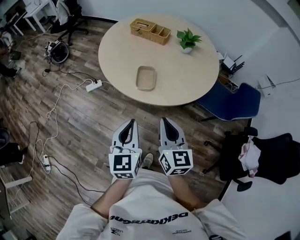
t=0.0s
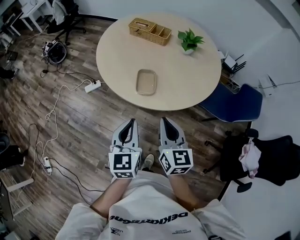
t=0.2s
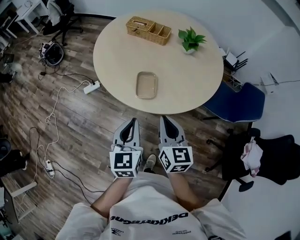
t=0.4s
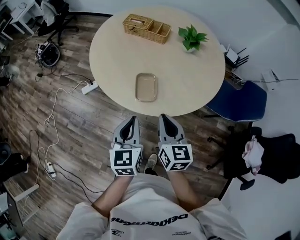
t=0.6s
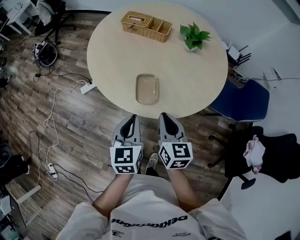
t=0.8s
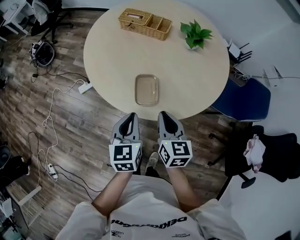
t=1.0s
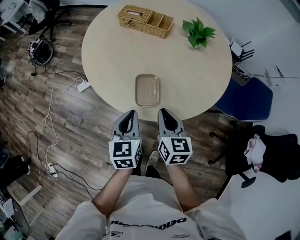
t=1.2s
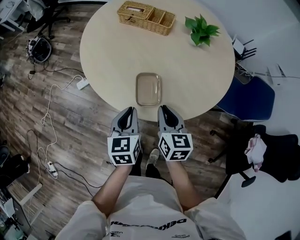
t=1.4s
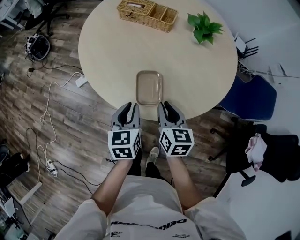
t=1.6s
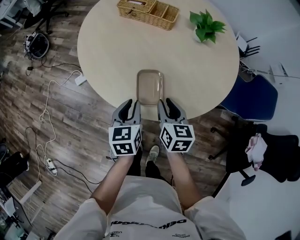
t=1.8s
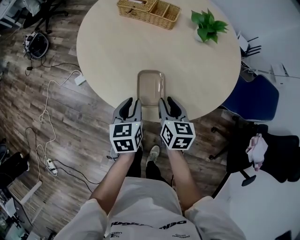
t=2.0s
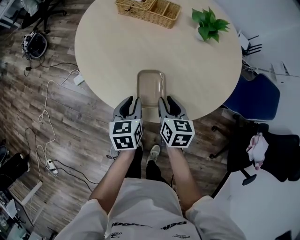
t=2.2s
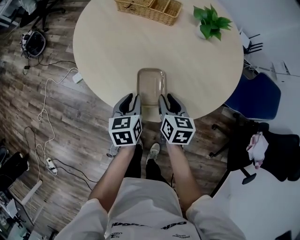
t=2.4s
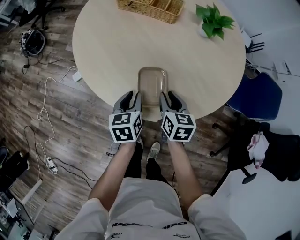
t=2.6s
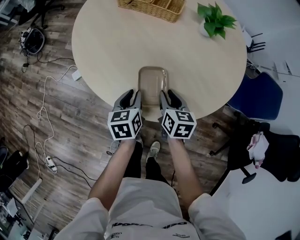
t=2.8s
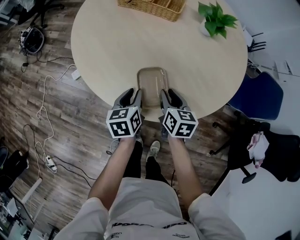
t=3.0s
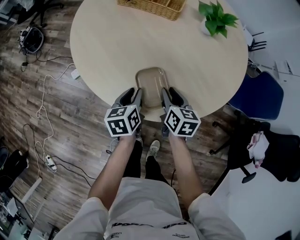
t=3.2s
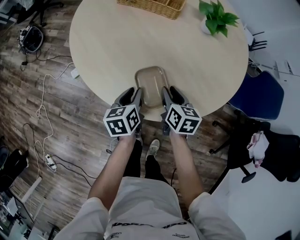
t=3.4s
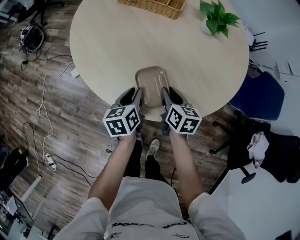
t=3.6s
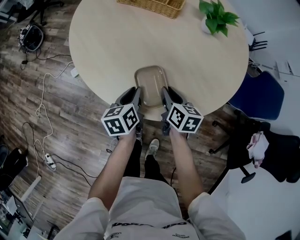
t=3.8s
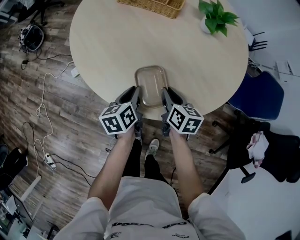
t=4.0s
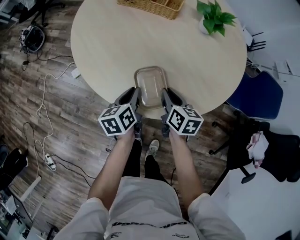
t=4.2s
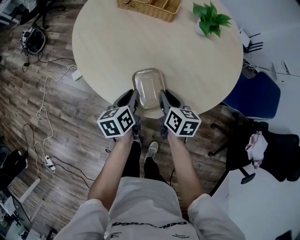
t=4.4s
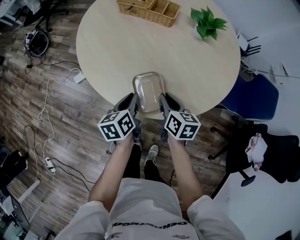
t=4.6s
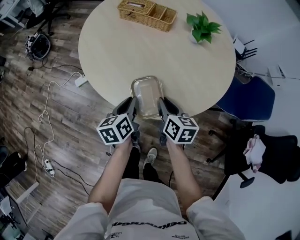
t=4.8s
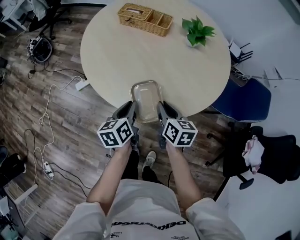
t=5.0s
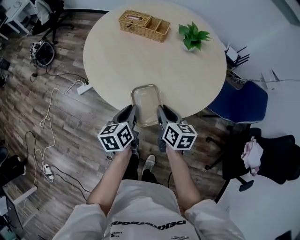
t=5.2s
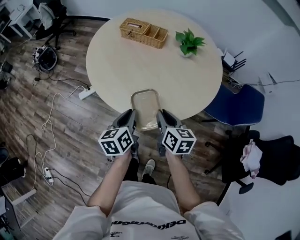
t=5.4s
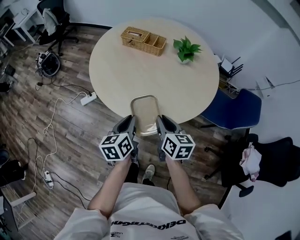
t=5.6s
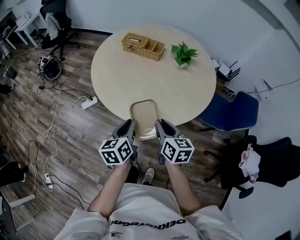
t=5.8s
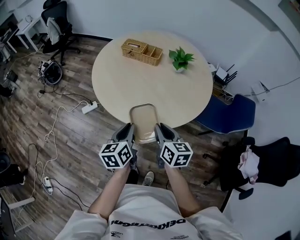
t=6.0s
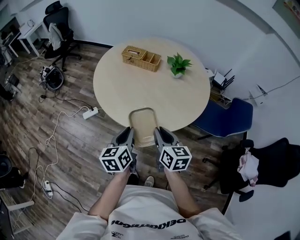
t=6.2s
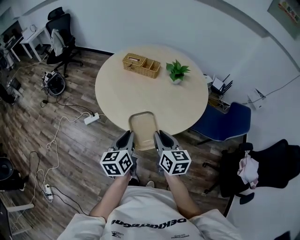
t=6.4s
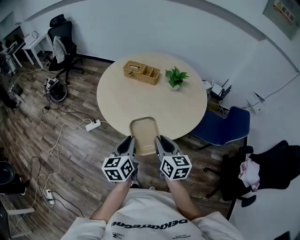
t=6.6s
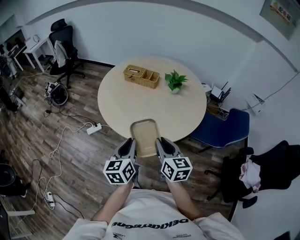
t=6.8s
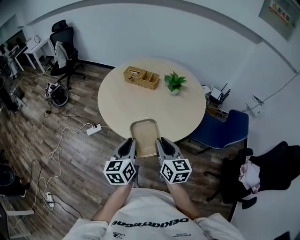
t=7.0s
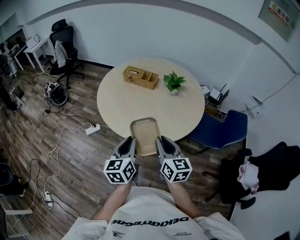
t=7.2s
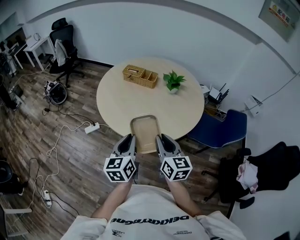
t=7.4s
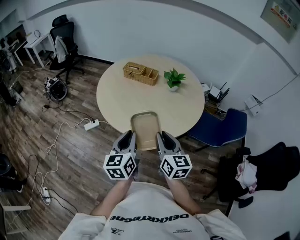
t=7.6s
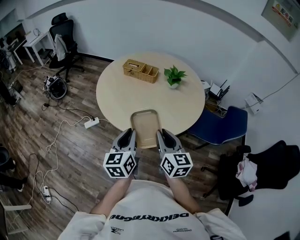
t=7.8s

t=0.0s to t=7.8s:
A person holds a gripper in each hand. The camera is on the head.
t=0.0s to t=1.6s: Both grippers travel together forward and downward, approximately 30 cm. The left gripper turns by some 20 degrees. Meanwhile the right gripper turns by some 20 degrees.
t=1.6s to t=3.2s: The grippers both shift downward and forward by roughly 15 cm.
t=3.2s to t=4.6s: The left gripper travels upward by roughly 5 cm, while the right gripper changes place by approximately 5 cm.
t=4.6s to t=6.2s: Both grippers travel together upward and backward, approximately 25 cm.
t=6.2s to t=7.8s: The two grippers go approximately 10 cm upward.

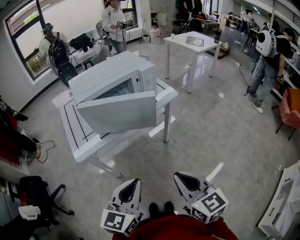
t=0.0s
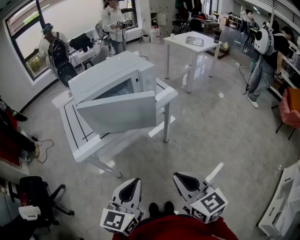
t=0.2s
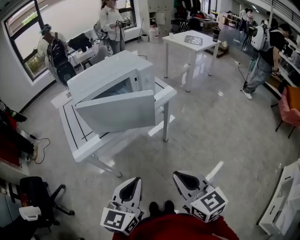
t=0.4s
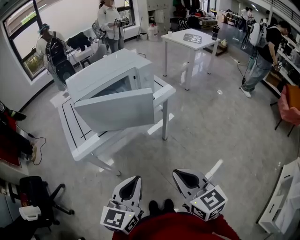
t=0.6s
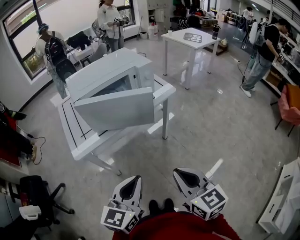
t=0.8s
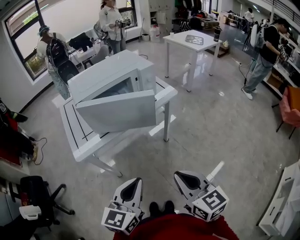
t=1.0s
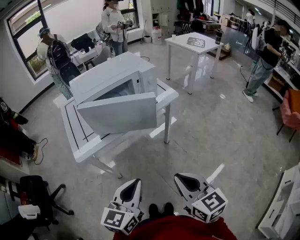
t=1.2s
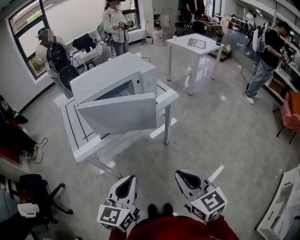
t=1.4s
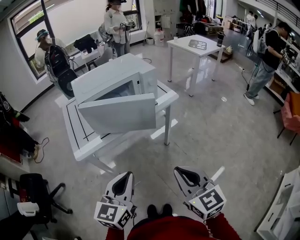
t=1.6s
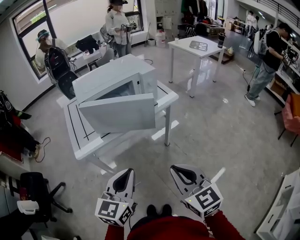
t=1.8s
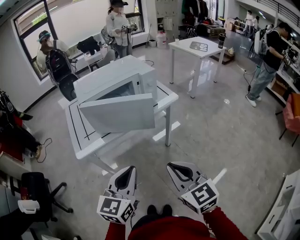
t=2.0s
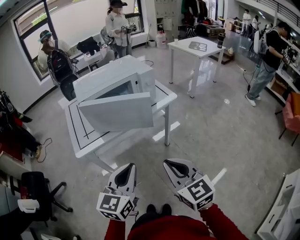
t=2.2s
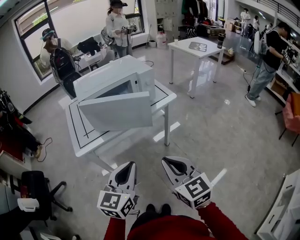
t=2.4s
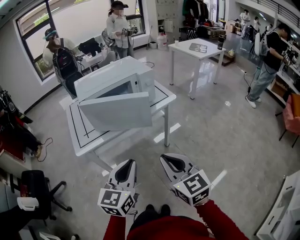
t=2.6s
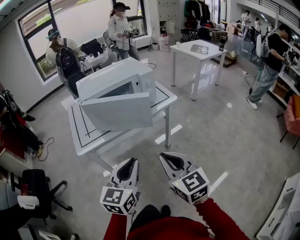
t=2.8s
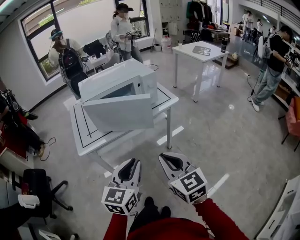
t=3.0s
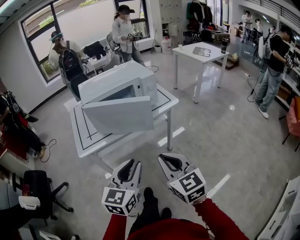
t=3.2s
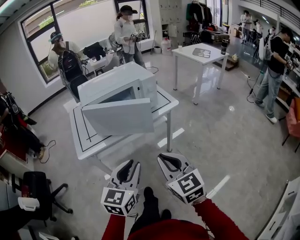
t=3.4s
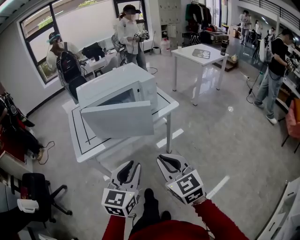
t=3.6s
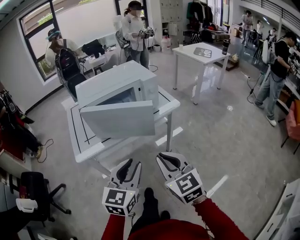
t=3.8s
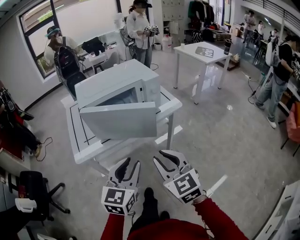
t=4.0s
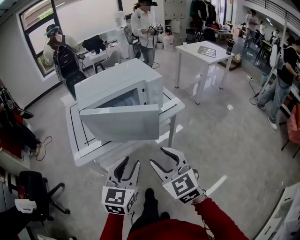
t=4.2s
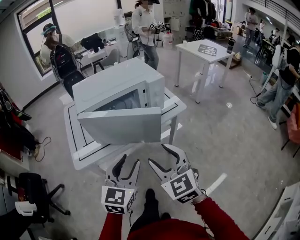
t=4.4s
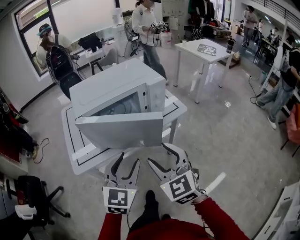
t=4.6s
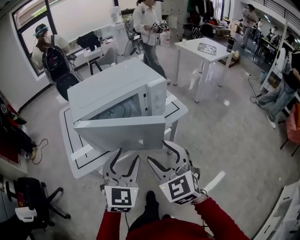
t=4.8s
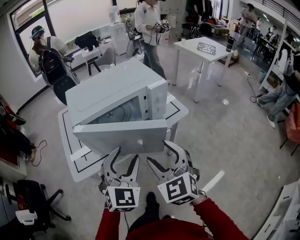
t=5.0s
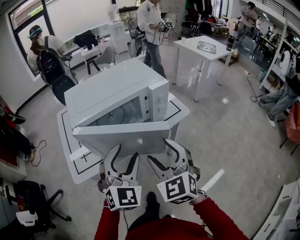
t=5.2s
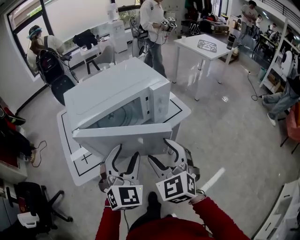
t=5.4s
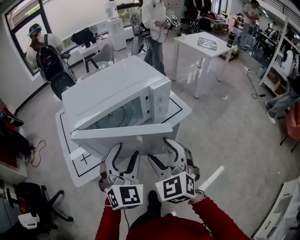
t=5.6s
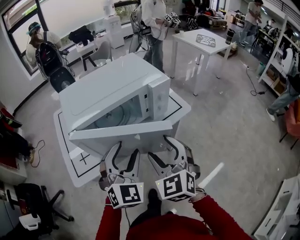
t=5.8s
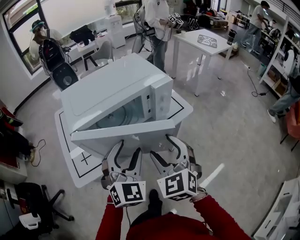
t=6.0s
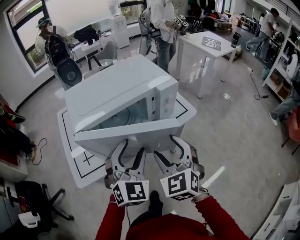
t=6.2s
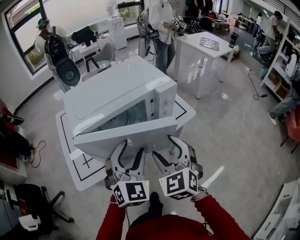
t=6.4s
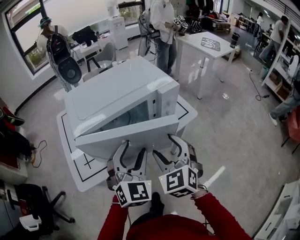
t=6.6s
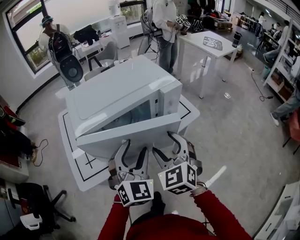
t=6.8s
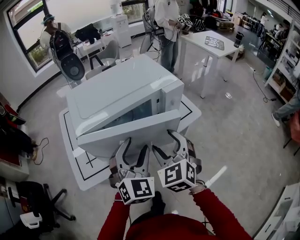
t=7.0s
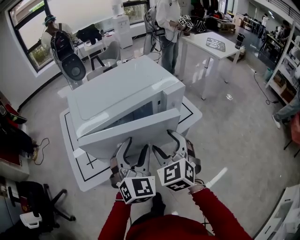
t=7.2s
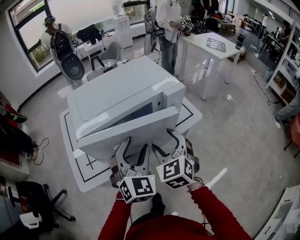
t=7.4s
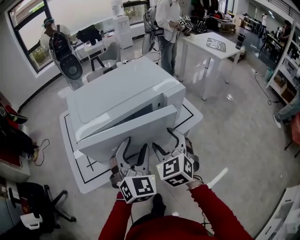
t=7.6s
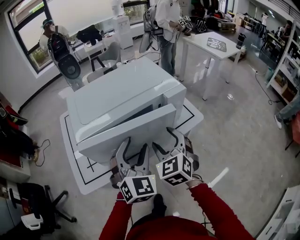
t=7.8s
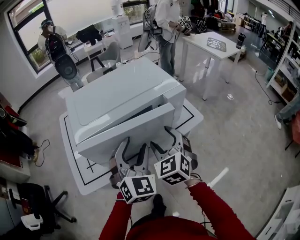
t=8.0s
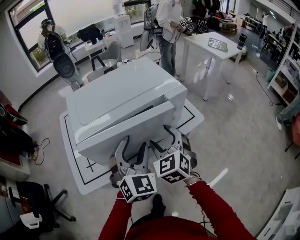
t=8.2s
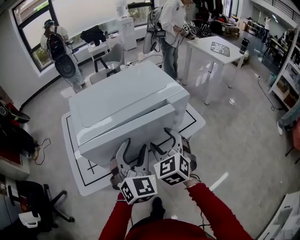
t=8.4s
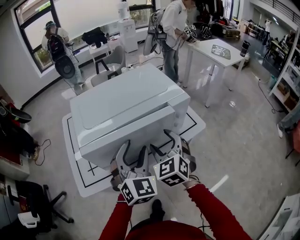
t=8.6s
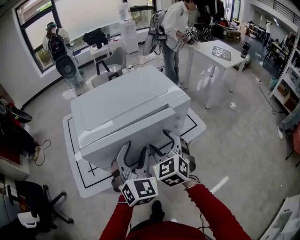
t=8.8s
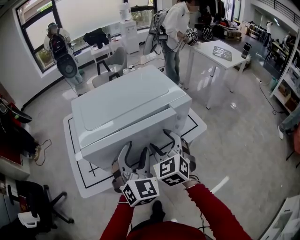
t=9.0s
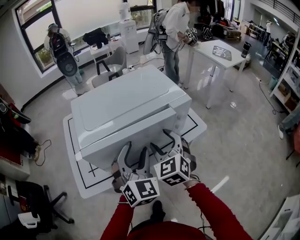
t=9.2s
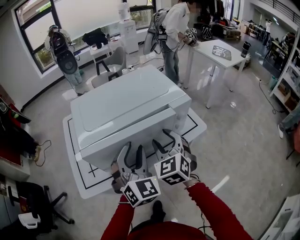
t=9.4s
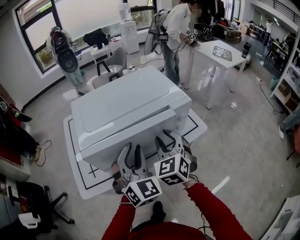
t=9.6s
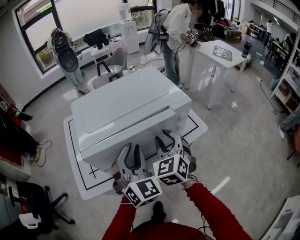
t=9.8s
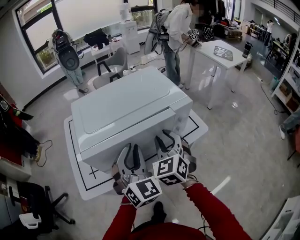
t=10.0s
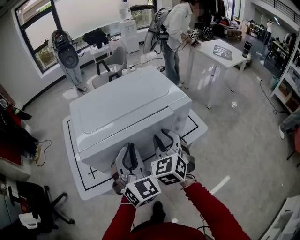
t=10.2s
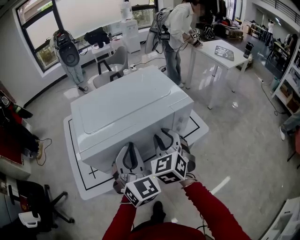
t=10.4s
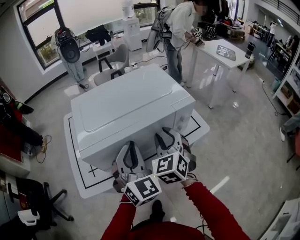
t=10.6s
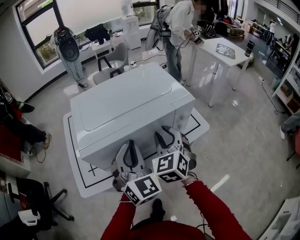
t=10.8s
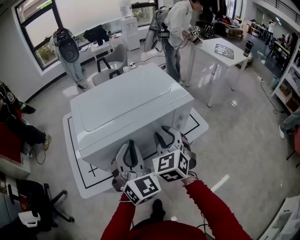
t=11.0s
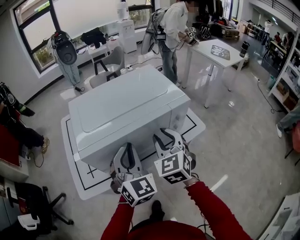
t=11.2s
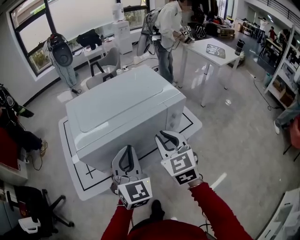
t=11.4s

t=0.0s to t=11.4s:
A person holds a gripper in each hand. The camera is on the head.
t=0.0s to t=2.8s: There are only small adjustments of the grippers.
t=2.8s to t=4.2s: The grippers both shift forward by some 10 cm. The left gripper opens. Meanwhile the right gripper opens up.
t=4.2s to t=5.6s: Both grippers move forward, some 10 cm. The left gripper turns by roughly 30 degrees, and opens its fingers. Meanwhile the right gripper opens up.
t=5.6s to t=7.2s: The right gripper moves forward, some 5 cm.
t=7.2s to t=8.6s: The right gripper heads forward, covering some 5 cm.
t=8.6s to t=10.0s: The left gripper closes its fingers; the right gripper closes.
t=10.0s to t=11.4s: The grippers make only small movements.

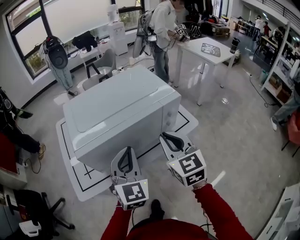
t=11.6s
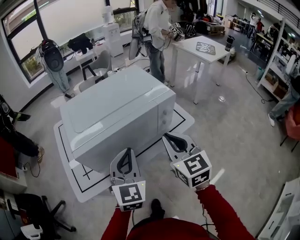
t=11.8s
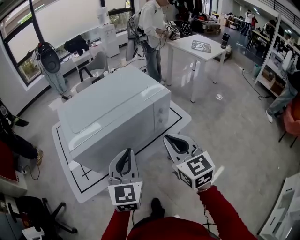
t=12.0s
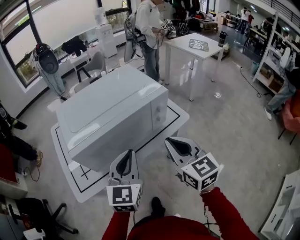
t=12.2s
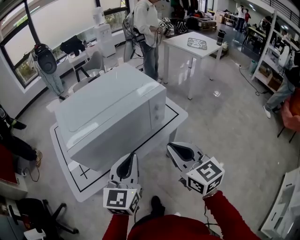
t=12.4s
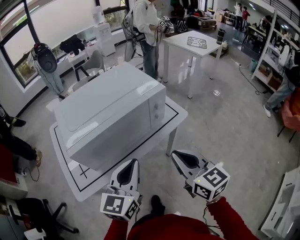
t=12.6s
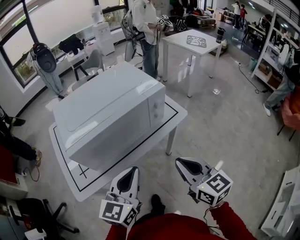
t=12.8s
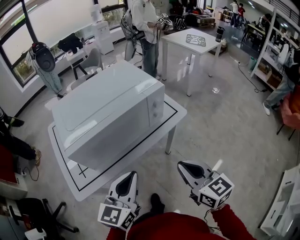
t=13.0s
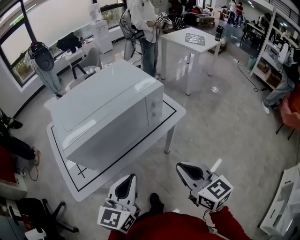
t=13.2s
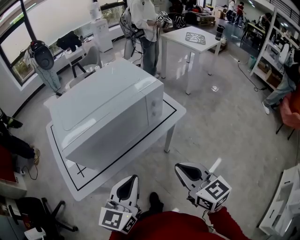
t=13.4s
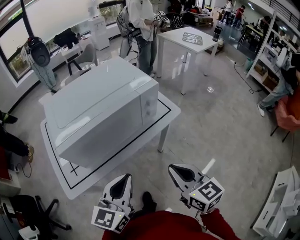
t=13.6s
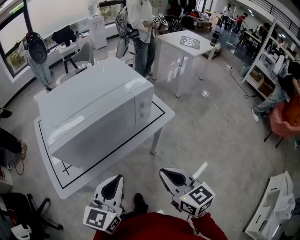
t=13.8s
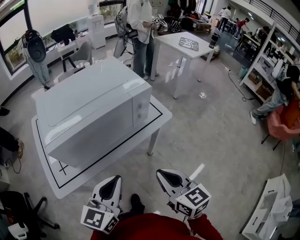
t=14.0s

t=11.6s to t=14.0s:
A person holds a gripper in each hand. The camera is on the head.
t=11.6s to t=12.8s: The grippers both shift backward by about 10 cm. The left gripper rotates some 40 degrees.
t=12.8s to t=14.0s: The grippers stay close to where they were, moving slightly.

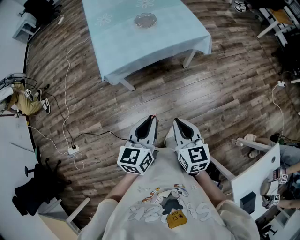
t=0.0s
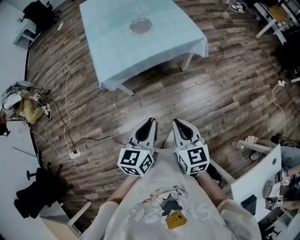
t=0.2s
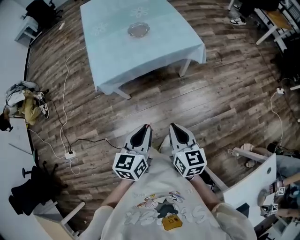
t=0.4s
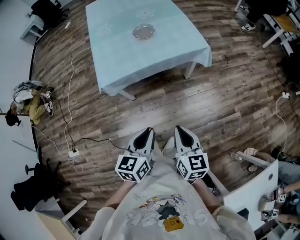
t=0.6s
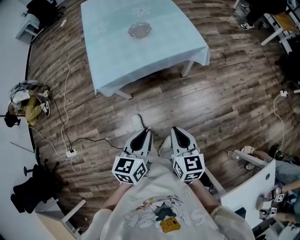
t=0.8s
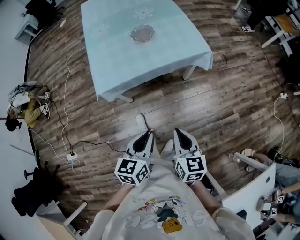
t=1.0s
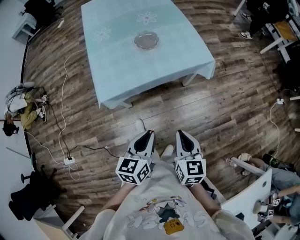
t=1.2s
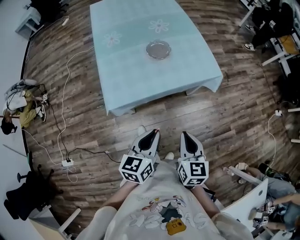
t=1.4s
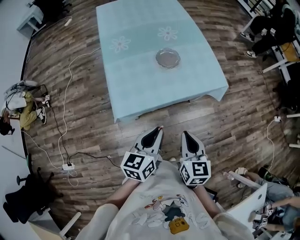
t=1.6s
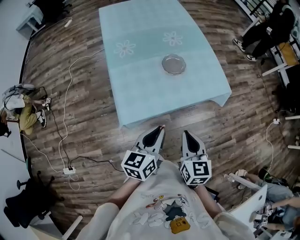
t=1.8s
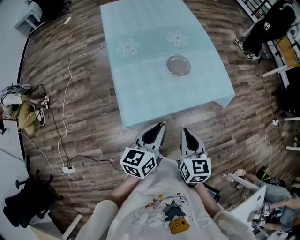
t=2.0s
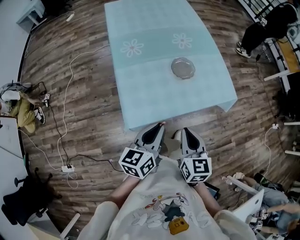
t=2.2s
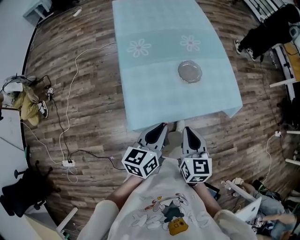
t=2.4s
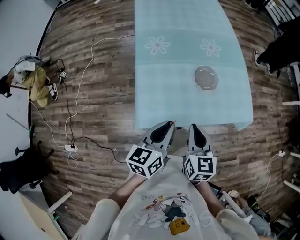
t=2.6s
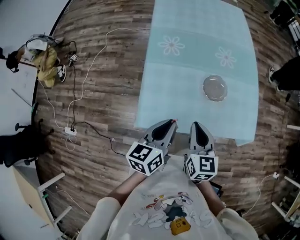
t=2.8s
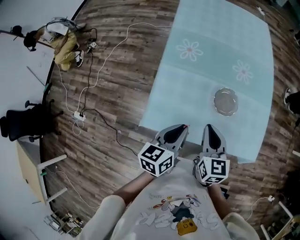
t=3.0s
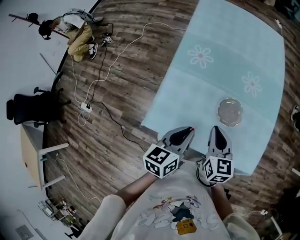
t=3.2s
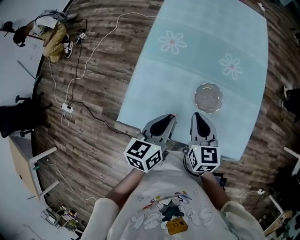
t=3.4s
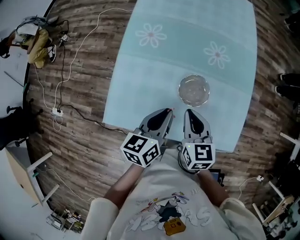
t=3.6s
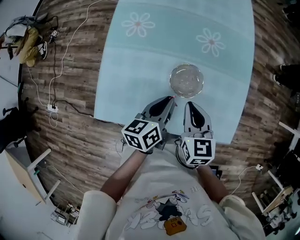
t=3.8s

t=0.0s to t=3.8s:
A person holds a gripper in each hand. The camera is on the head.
t=0.0s to t=1.2s: The grippers both shift forward by approximately 15 cm.
t=1.2s to t=2.6s: The two grippers go some 35 cm forward and to the left.
t=2.6s to t=3.8s: The two grippers go about 25 cm forward, to the right and downward. The left gripper swivels approximately 20 degrees.
